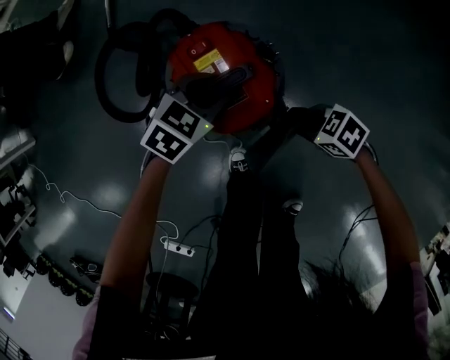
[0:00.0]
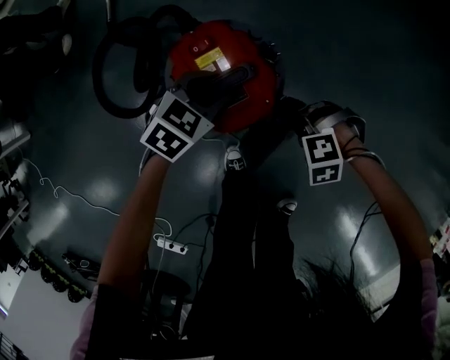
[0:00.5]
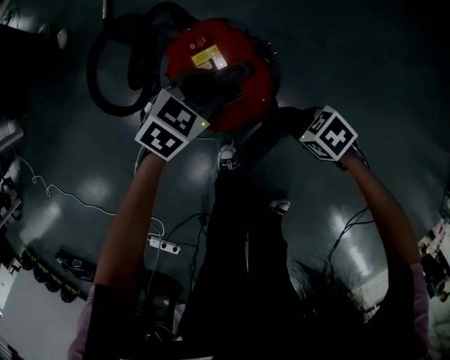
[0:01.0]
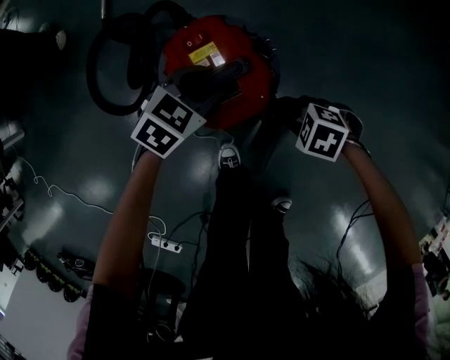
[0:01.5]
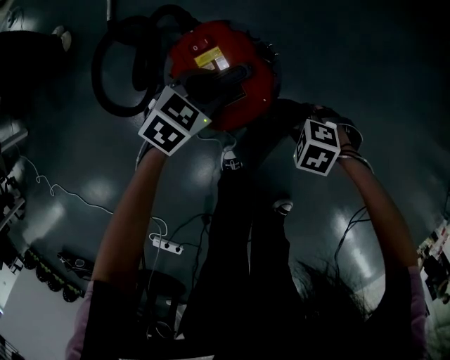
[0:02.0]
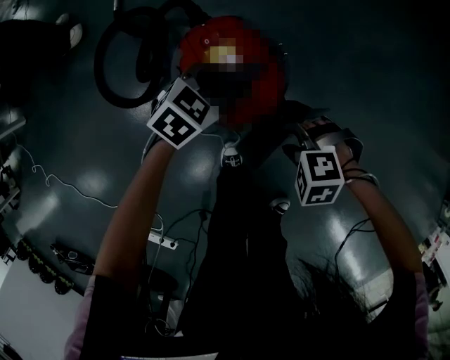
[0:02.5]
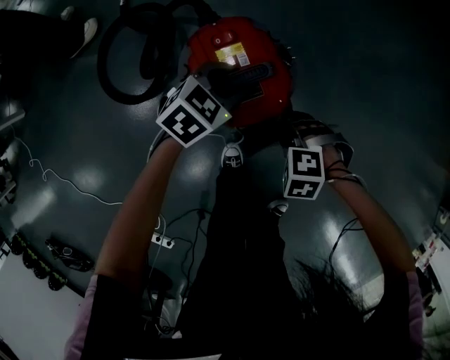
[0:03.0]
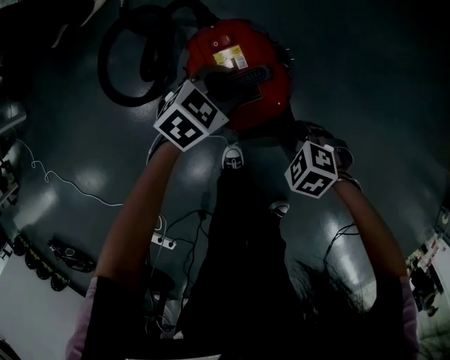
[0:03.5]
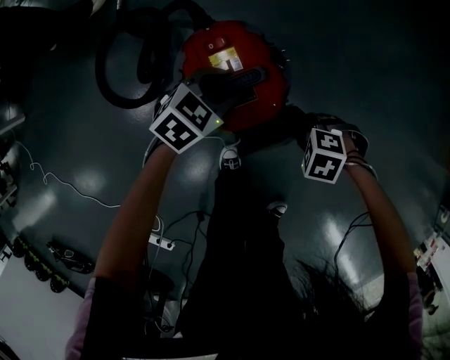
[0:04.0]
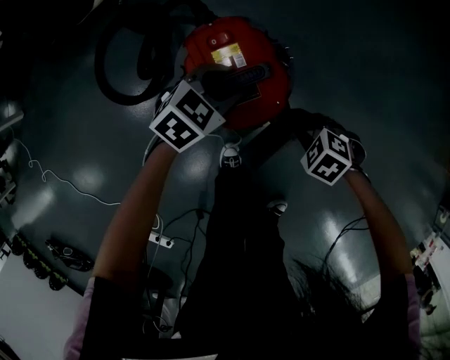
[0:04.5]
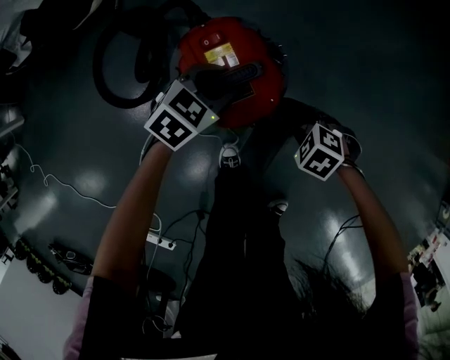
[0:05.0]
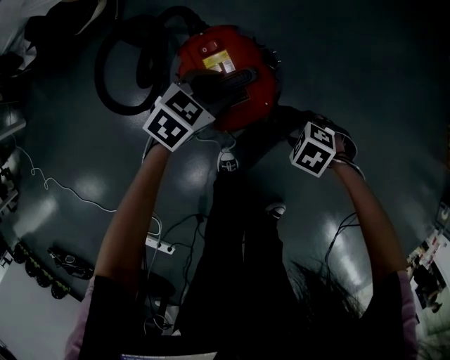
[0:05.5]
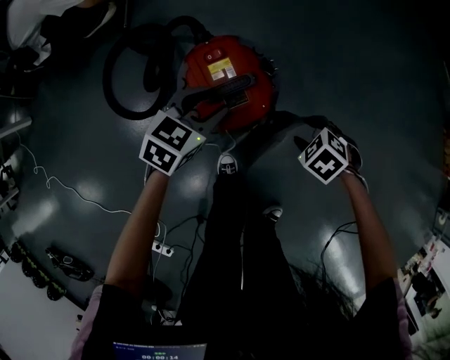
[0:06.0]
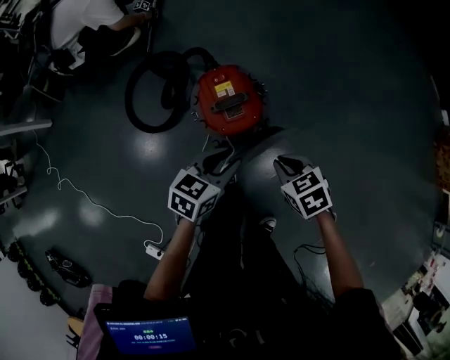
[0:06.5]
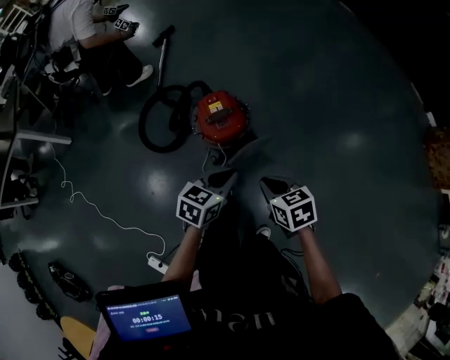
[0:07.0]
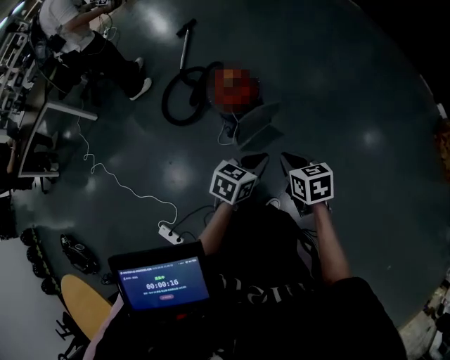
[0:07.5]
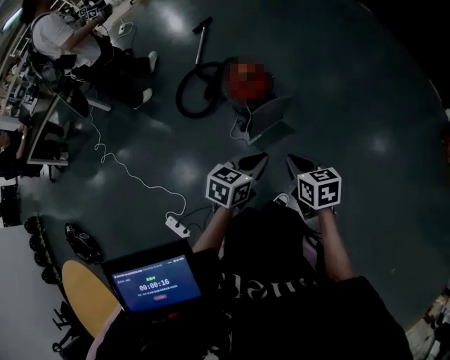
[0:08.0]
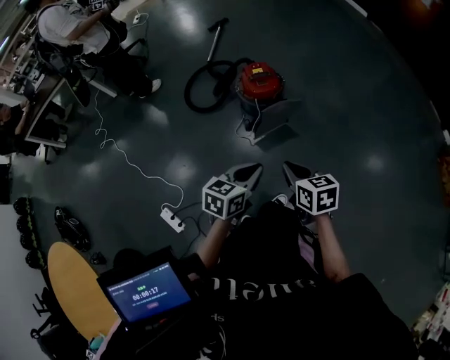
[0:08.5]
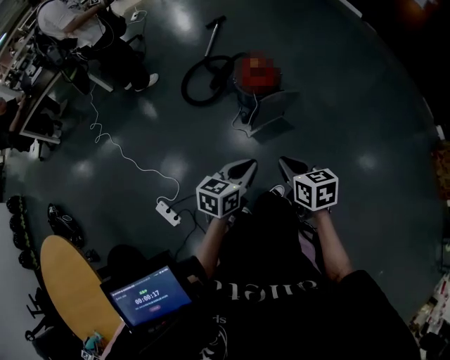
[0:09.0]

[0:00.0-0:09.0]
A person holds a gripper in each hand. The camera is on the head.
0:00.0 to 0:02.0: The right gripper swivels roughly 40 degrees.
0:04.5 to 0:07.0: The grippers both shift upward by roughly 40 cm. The right gripper angles its fingers upward, by some 30 degrees, and opens, then closes again, while the left gripper rotates roughly 30 degrees, and closes its fingers.
0:07.0 to 0:09.0: Both grippers move backward, roughly 35 cm. The left gripper swivels some 20 degrees.

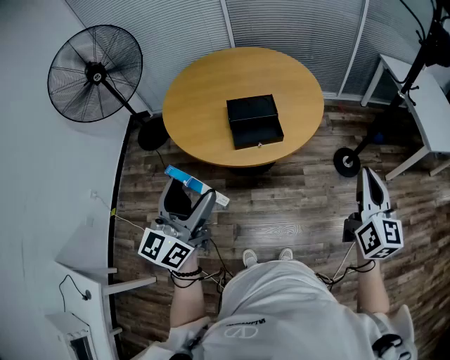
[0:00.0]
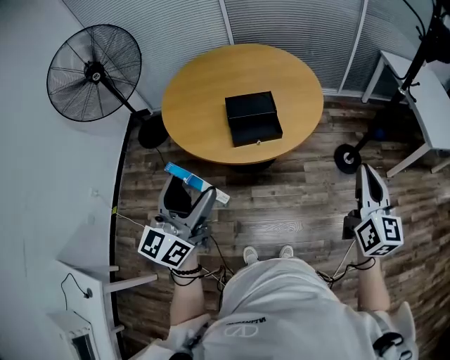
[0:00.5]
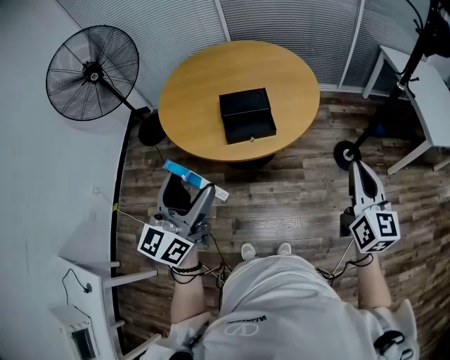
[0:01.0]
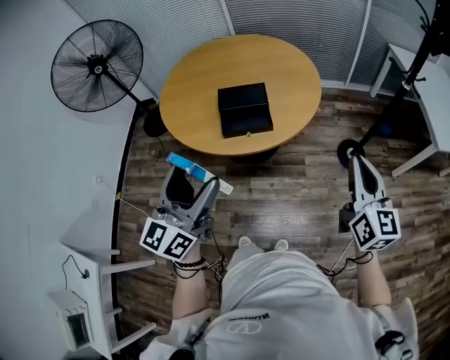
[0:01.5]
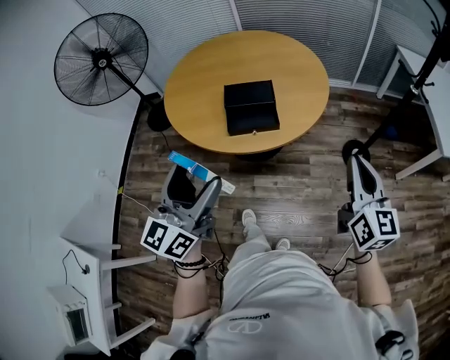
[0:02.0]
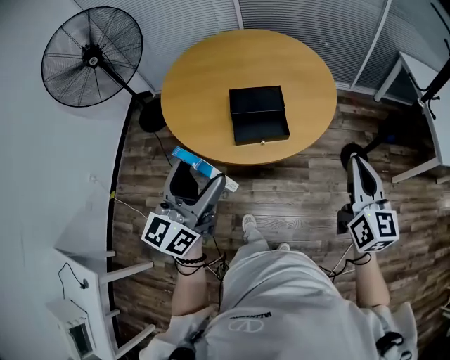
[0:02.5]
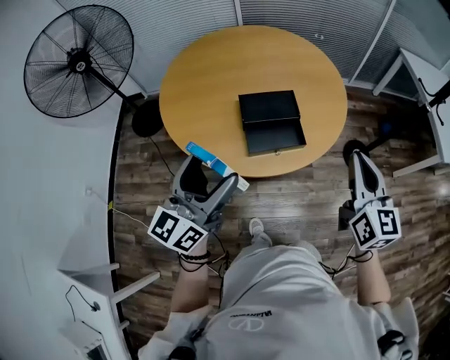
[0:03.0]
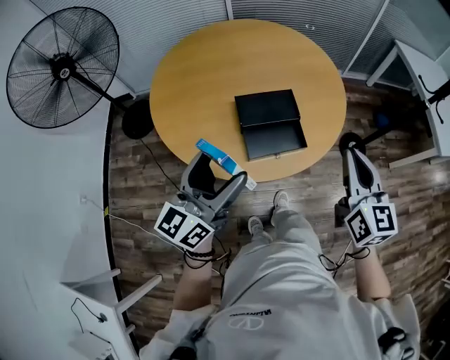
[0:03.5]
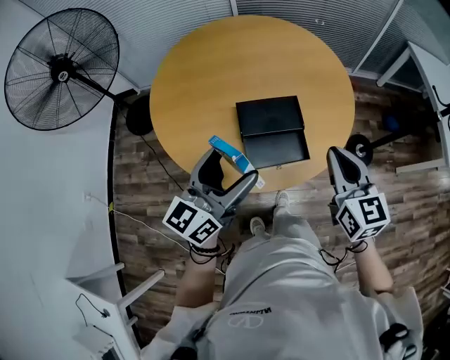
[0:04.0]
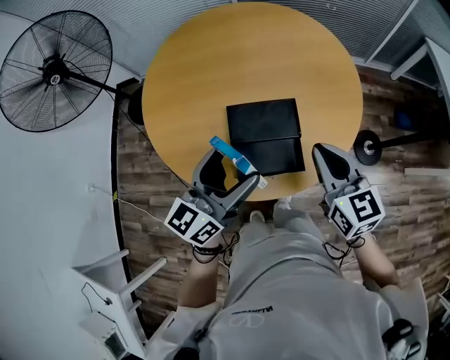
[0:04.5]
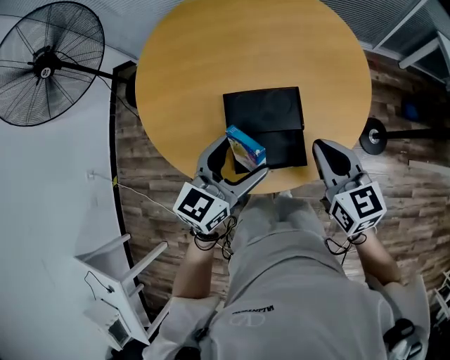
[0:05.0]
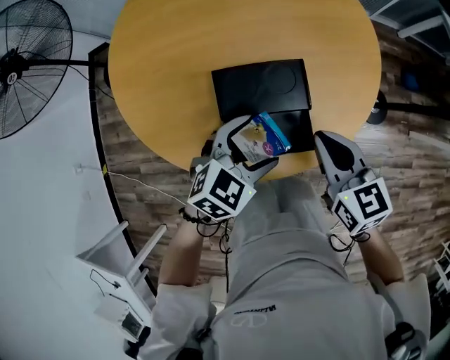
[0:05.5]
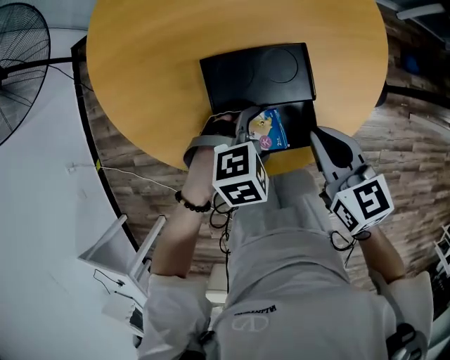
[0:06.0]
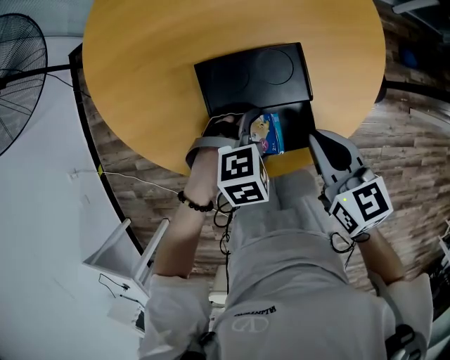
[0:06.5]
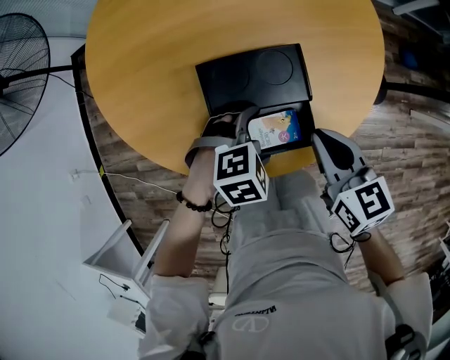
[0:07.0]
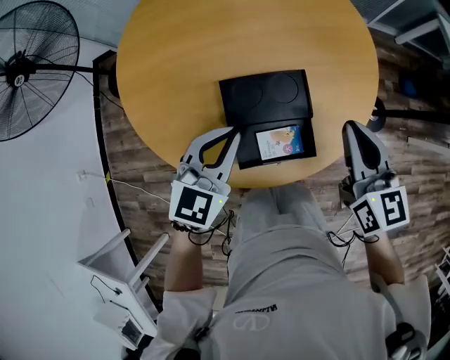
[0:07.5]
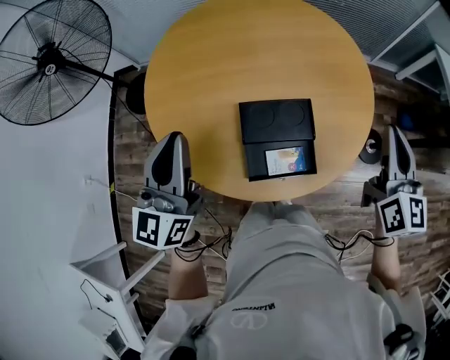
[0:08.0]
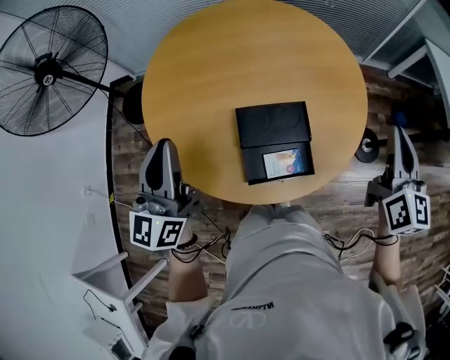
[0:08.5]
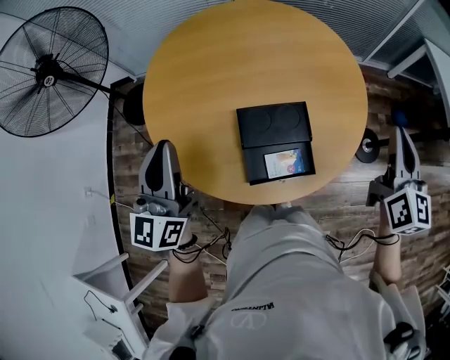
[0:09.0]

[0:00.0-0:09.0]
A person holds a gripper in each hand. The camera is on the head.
0:00.0 to 0:02.0: The right gripper heads forward, covering some 5 cm; the left gripper heads to the right, covering roughly 10 cm.
0:02.0 to 0:04.5: The left gripper shifts roughly 35 cm forward, and rotates about 20 degrees, while the right gripper heads forward and to the left, covering approximately 40 cm, and changes its angle by about 20 degrees.
0:04.5 to 0:07.0: The left gripper moves downward, roughly 30 cm, and tips its fingers downward by roughly 70 degrees. The right gripper shifts about 15 cm downward.
0:07.0 to 0:09.0: The left gripper shifts approximately 40 cm upward and to the left, tips its fingers upward by some 70 degrees, and closes up, while the right gripper goes some 25 cm upward and to the right, and rotates some 40 degrees.

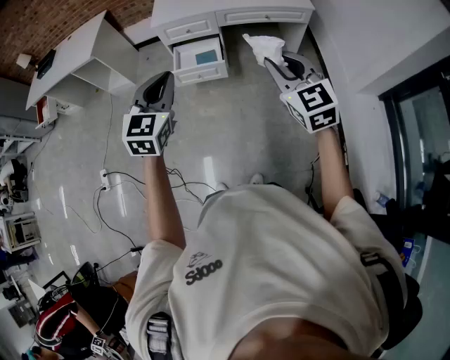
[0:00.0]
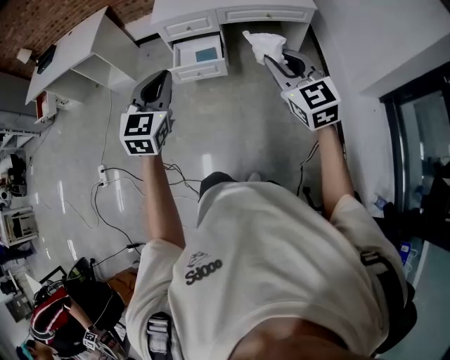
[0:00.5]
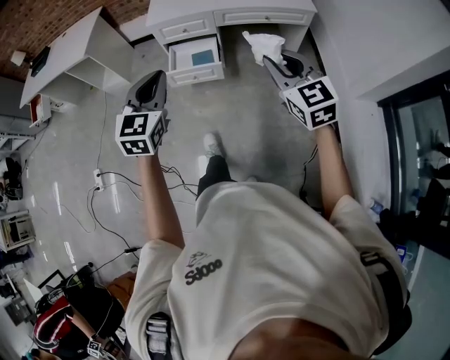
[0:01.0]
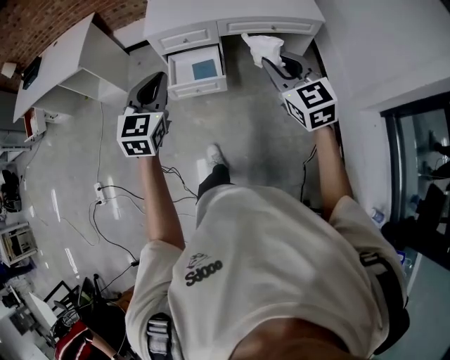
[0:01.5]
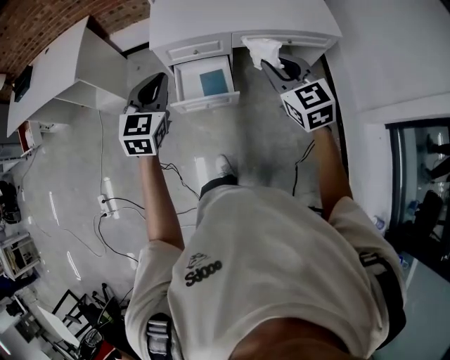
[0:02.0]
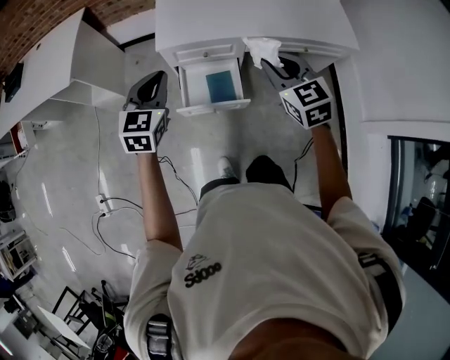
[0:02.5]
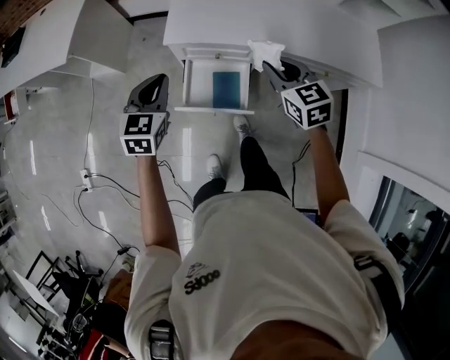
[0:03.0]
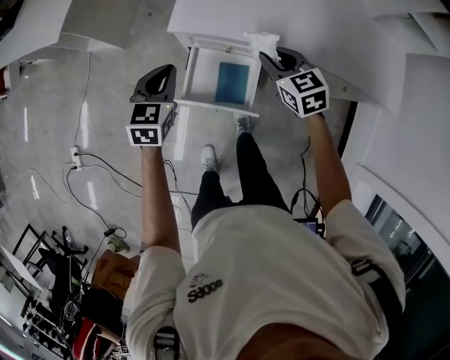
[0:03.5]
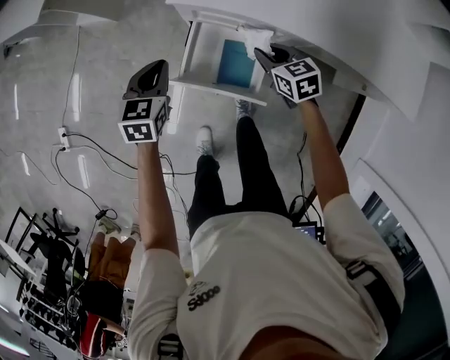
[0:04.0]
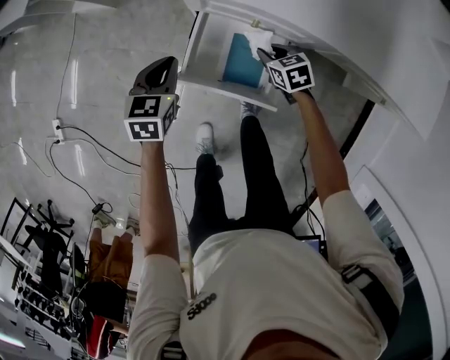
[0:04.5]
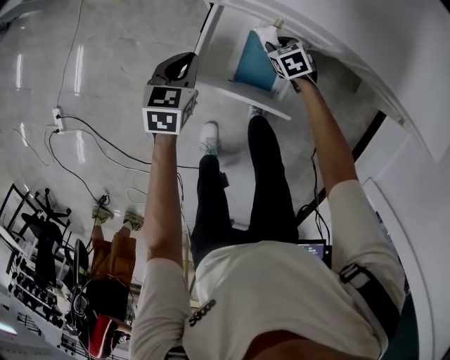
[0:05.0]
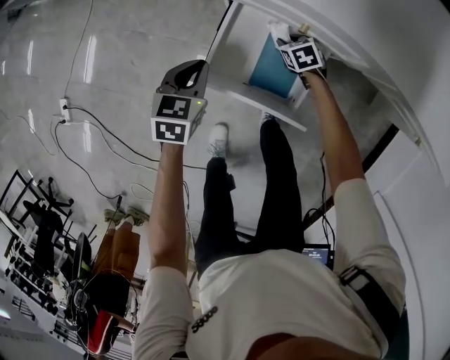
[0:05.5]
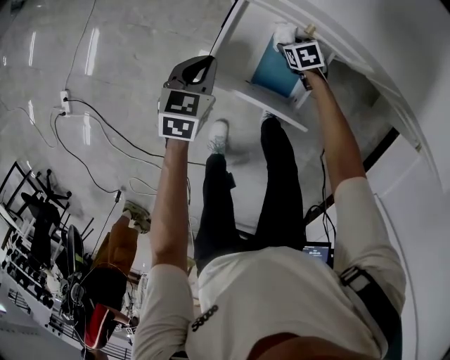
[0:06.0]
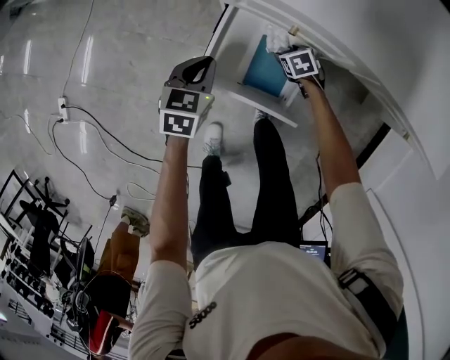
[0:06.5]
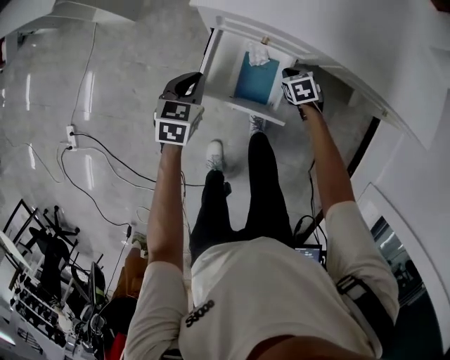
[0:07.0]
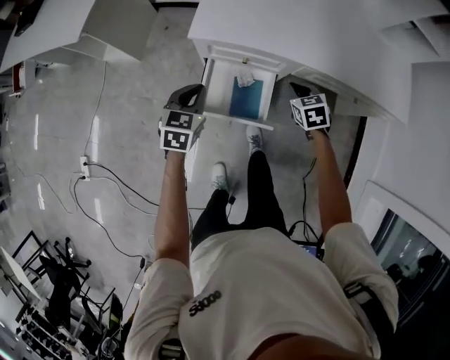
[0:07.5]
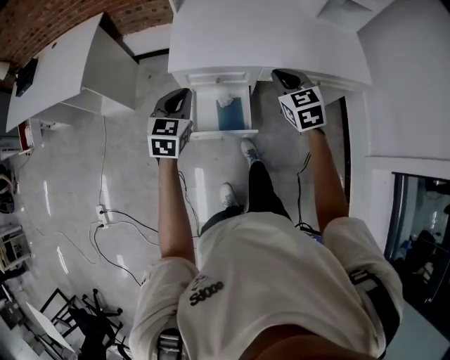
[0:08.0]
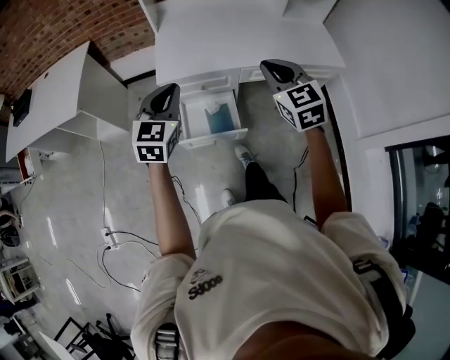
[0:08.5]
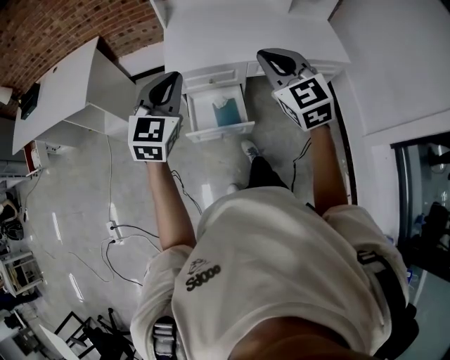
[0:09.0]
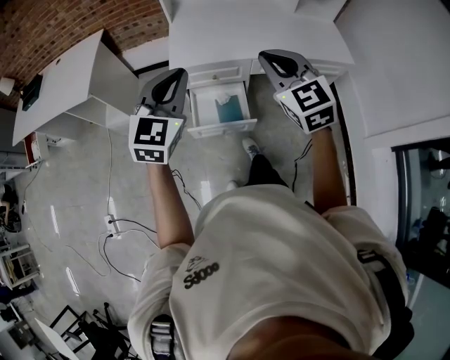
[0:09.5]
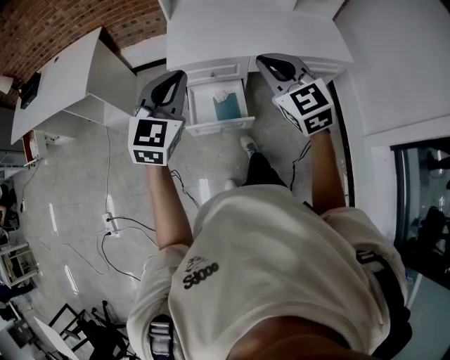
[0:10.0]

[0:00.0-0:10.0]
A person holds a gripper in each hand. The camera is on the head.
0:00.0 to 0:02.0: The two grippers go some 35 cm forward.
0:02.0 to 0:04.0: Both grippers move downward, about 40 cm. The left gripper turns by approximately 40 degrees. Meanwhile the right gripper changes its angle by approximately 40 degrees.
0:04.0 to 0:06.0: The right gripper moves downward, some 35 cm, swivels about 30 degrees, and opens up; the left gripper shifts about 20 cm downward.
0:06.0 to 0:08.0: The right gripper travels upward by some 70 cm, tips its fingers upward by approximately 40 degrees, and closes its fingers. Meanwhile the left gripper moves upward, about 50 cm, and rotates approximately 40 degrees.
0:08.0 to 0:10.0: The left gripper moves upward and backward, some 20 cm, and changes its angle by about 20 degrees. The right gripper moves backward and upward, approximately 25 cm.
